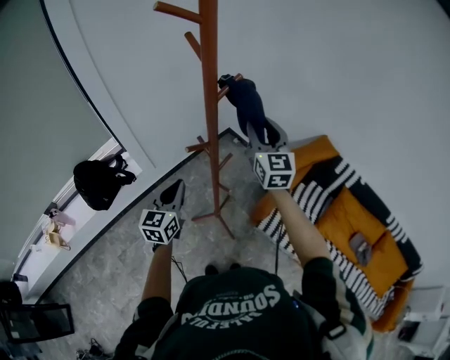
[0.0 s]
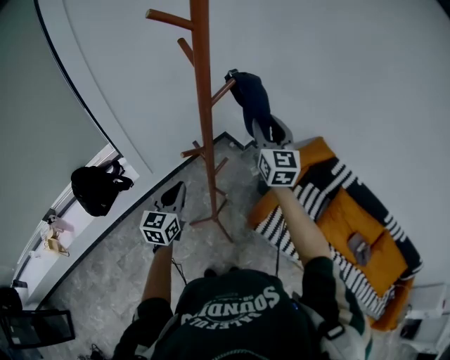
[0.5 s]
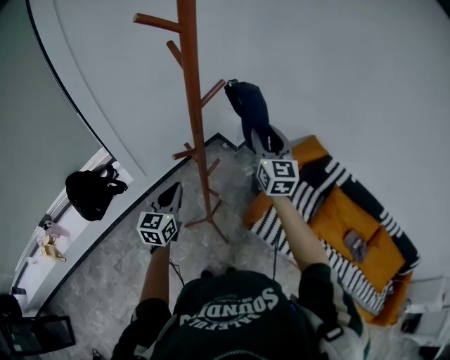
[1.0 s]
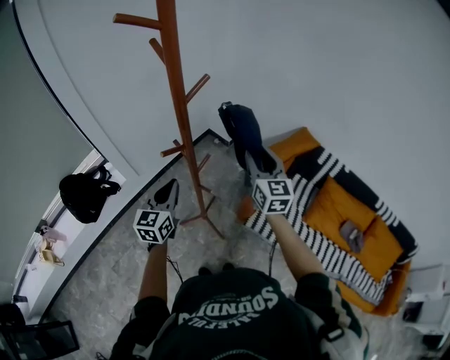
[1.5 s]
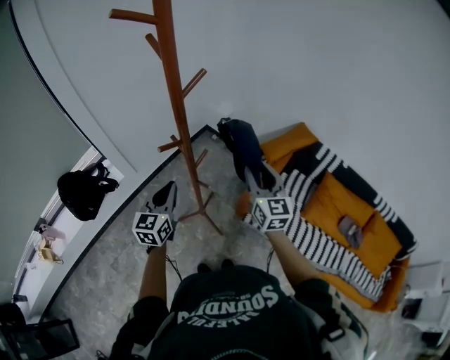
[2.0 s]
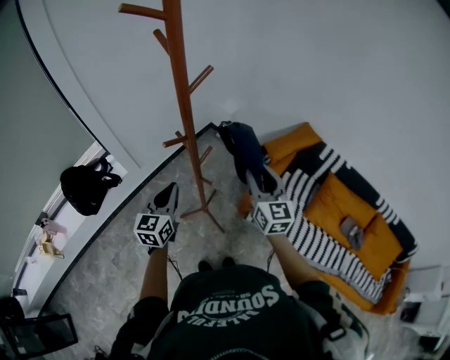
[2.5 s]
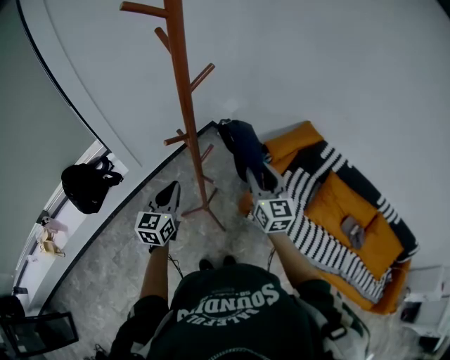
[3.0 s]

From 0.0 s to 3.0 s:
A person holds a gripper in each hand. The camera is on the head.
From 0.0 s to 1.5 s: The left gripper moves some 5 cm, while the right gripper travels to the right, downward and backward by roughly 15 cm.
From 1.5 s to 3.0 s: The right gripper heads backward, covering approximately 5 cm.

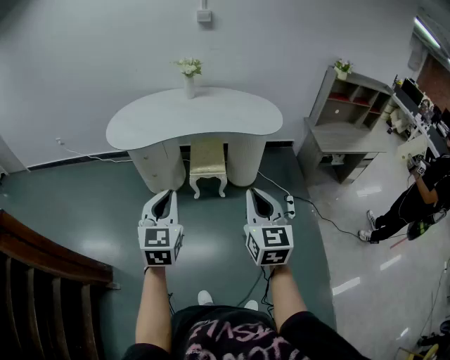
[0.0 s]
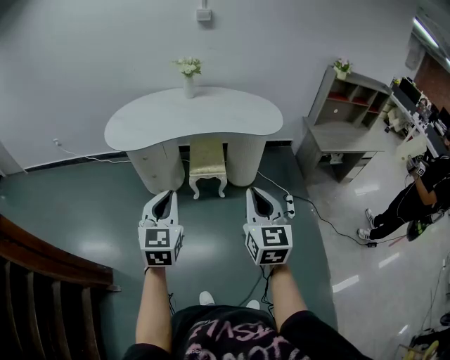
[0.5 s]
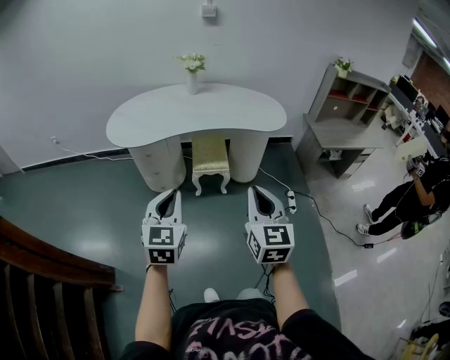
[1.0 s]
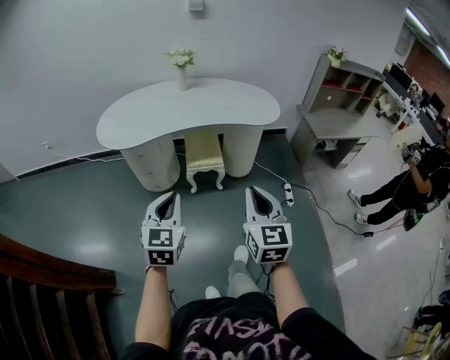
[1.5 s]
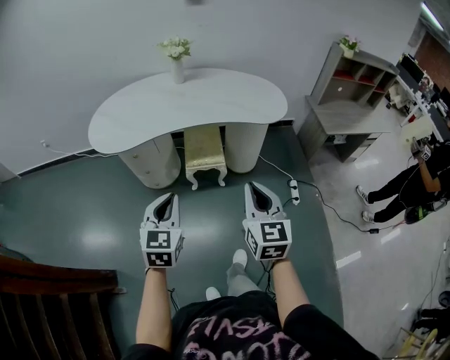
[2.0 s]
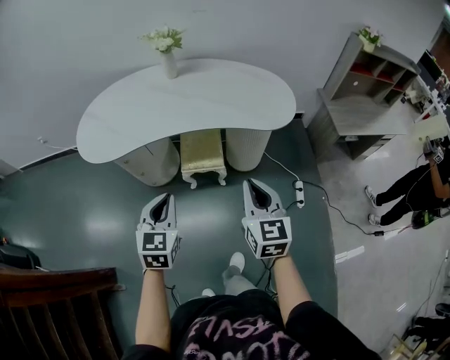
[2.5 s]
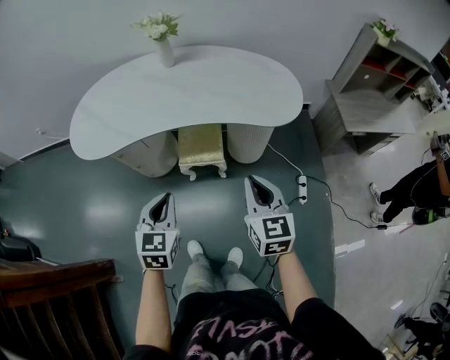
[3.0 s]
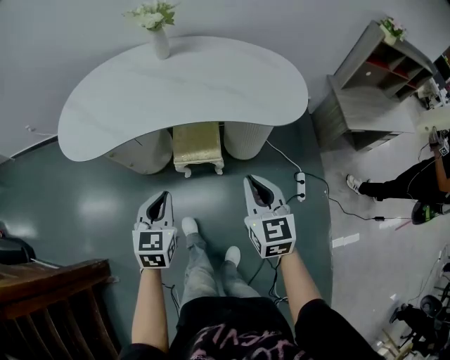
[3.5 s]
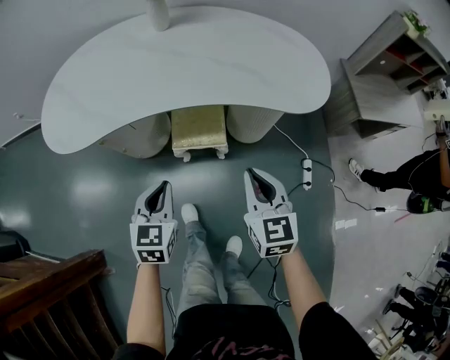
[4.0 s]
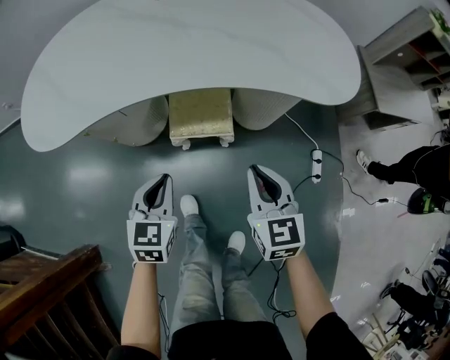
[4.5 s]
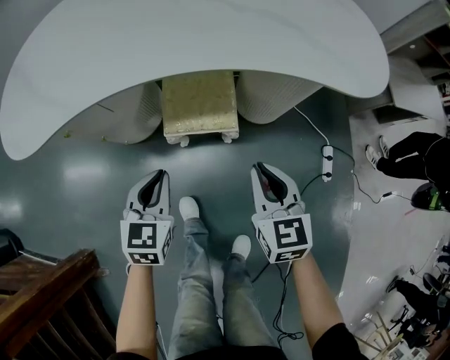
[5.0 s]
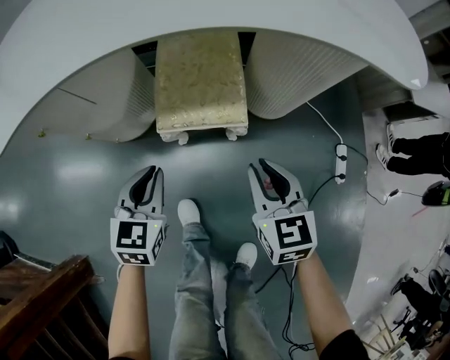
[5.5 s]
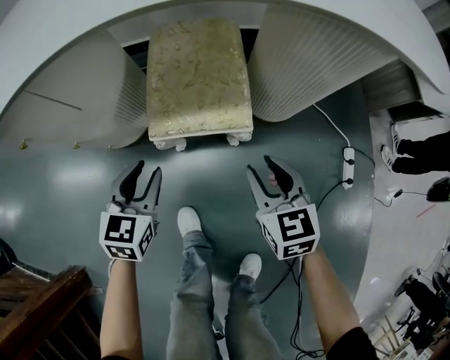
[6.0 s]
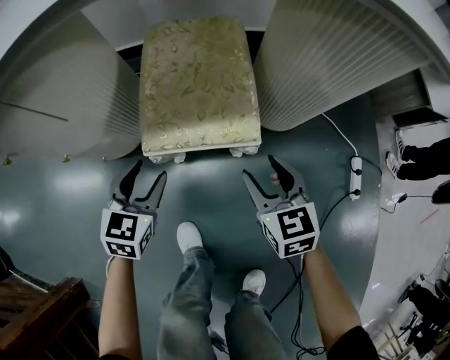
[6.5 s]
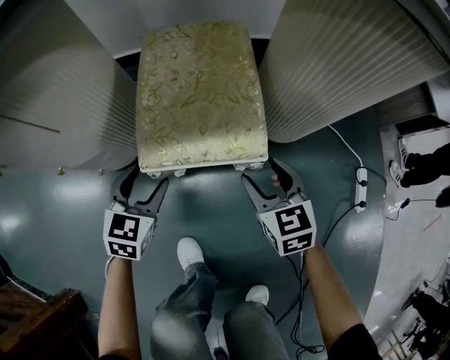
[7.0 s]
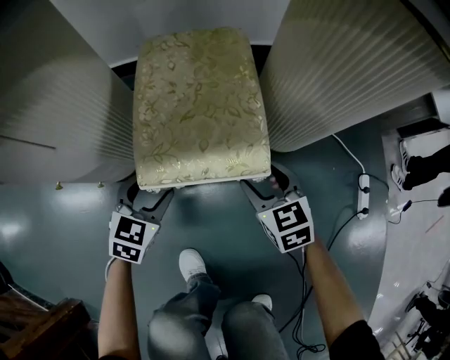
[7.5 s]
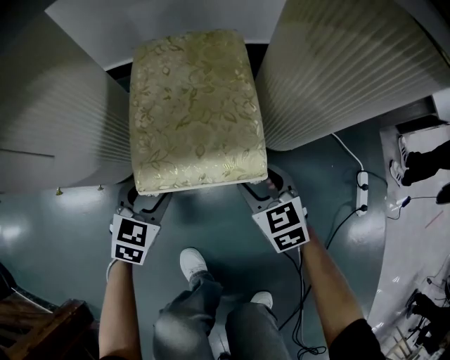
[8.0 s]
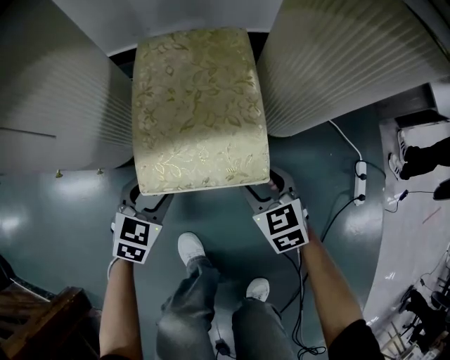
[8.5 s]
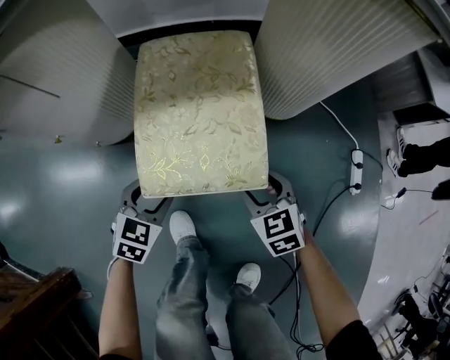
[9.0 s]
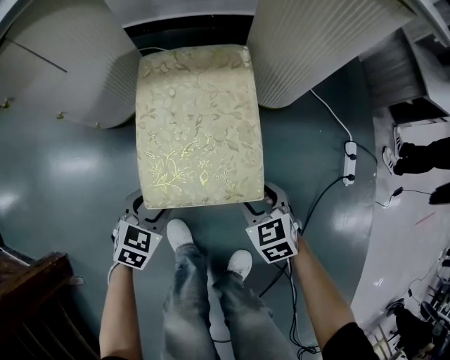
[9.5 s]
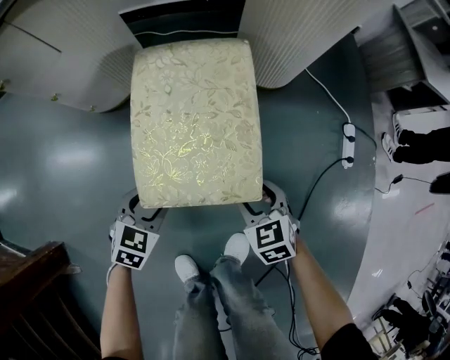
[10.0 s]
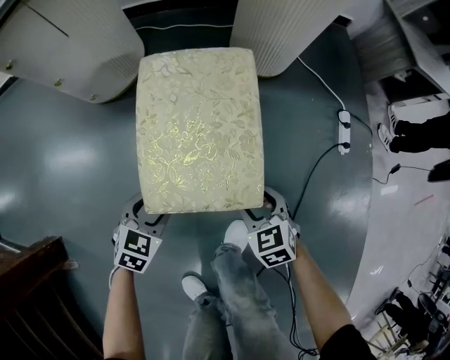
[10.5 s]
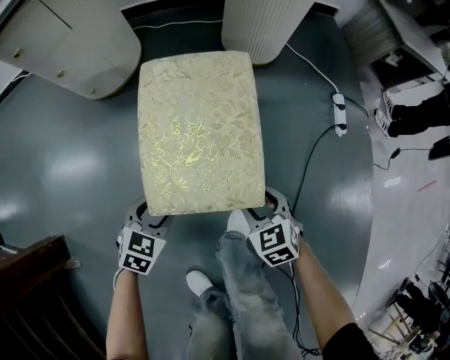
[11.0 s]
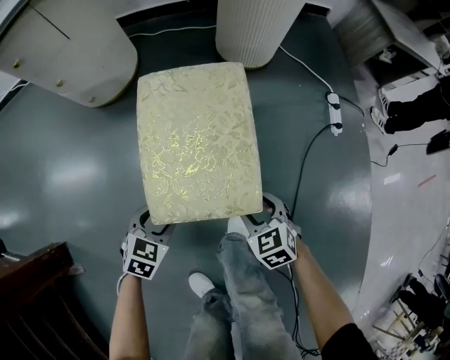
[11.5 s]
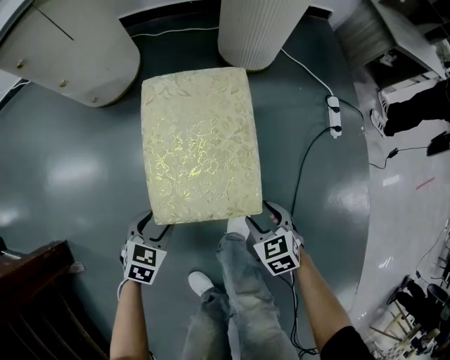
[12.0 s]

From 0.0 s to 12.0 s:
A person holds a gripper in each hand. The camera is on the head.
From 0.0 s to 2.0 s: Both grippers travel together forward and downward, roughly 15 cm.
From 2.0 s to 4.0 s: Both grippers travel together forward and downward, some 30 cm.
From 4.0 s to 6.0 s: Both grippers move downward, some 35 cm. The right gripper opens; the left gripper opens its fingers.
From 6.0 s to 8.0 s: Both grippers move downward and forward, approximately 15 cm. The left gripper opens its fingers.
From 8.0 s to 12.0 s: The grippers move only a little.

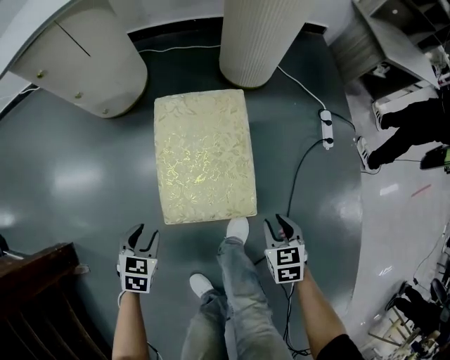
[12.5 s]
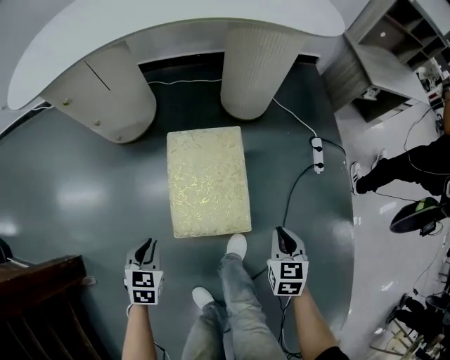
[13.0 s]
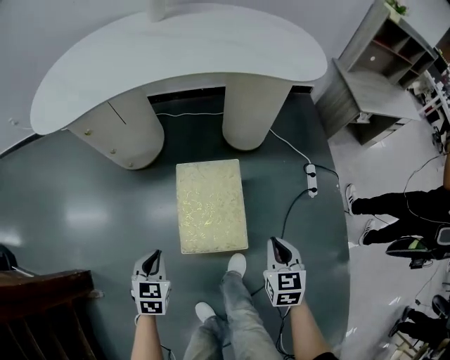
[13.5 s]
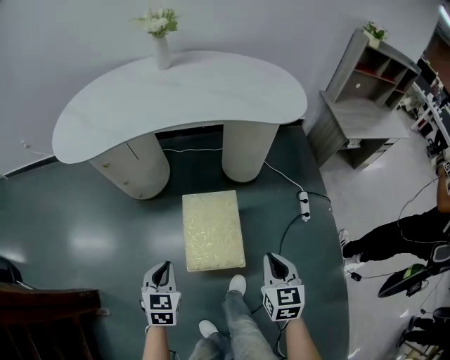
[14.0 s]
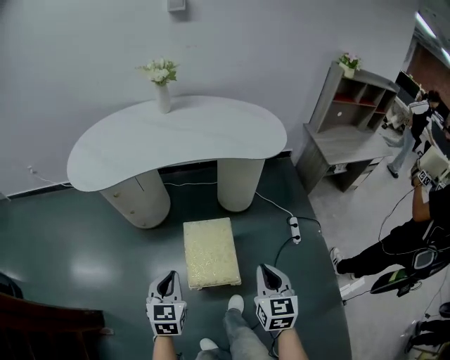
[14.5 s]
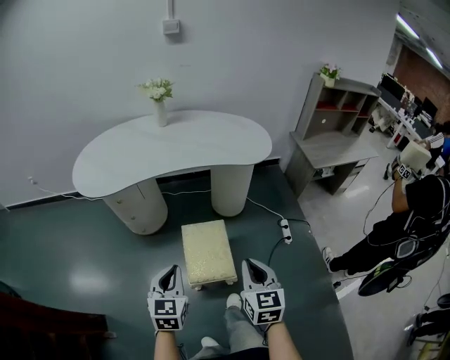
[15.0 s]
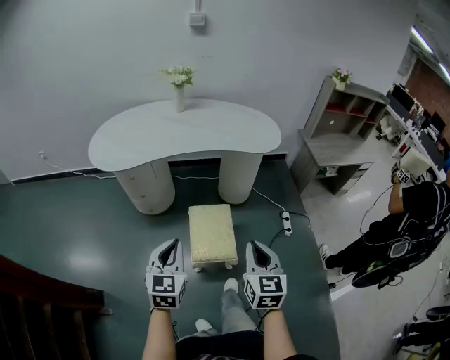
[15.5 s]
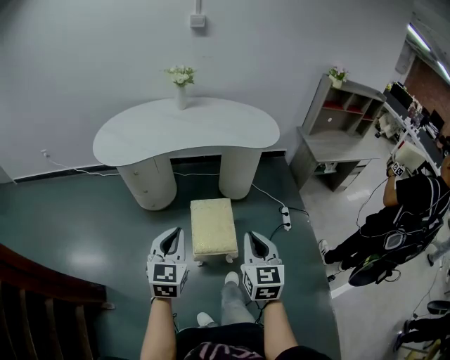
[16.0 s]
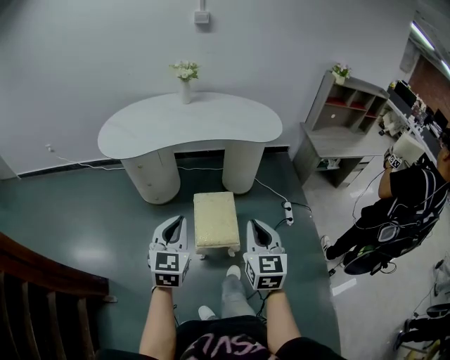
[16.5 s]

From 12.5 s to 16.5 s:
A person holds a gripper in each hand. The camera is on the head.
From 12.5 s to 14.5 s: The grippers both shift upward by approximately 40 cm. The left gripper points its fingers some 30 degrees further upward, and closes up. Meanwhile the right gripper angles its fingers upward, by some 30 degrees, and closes up.
From 14.5 s to 16.5 s: Both grippers travel together upward and backward, approximately 20 cm.

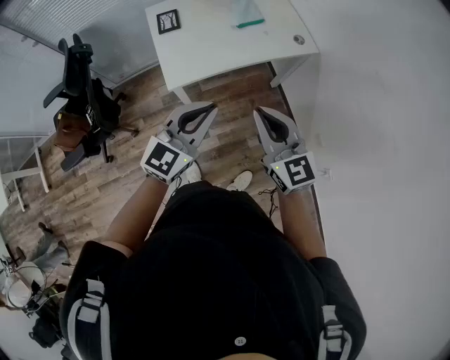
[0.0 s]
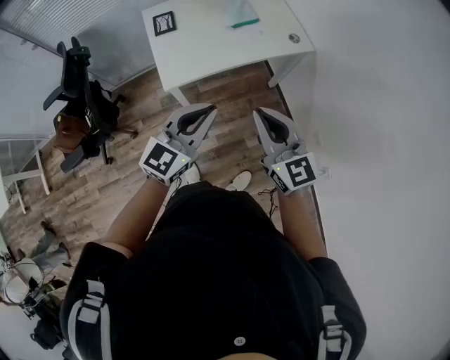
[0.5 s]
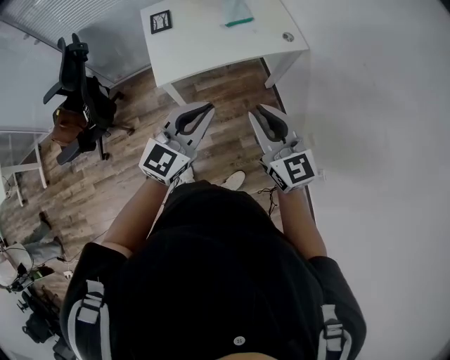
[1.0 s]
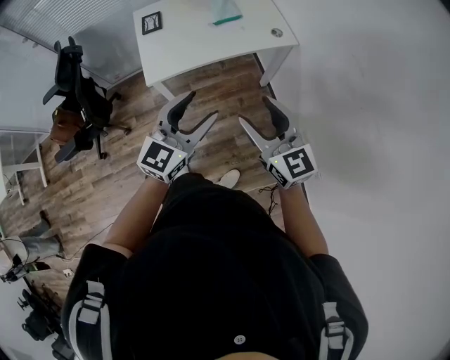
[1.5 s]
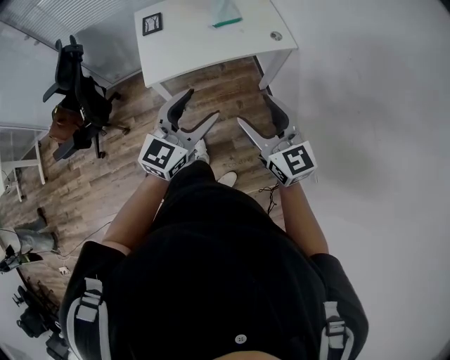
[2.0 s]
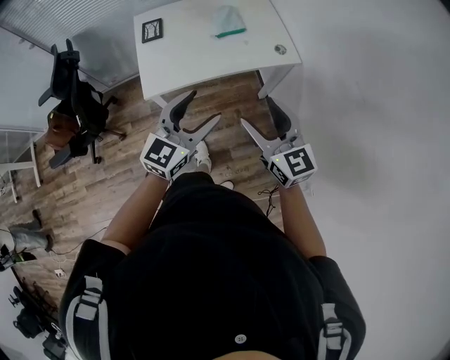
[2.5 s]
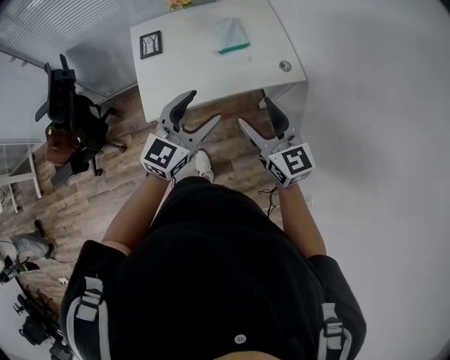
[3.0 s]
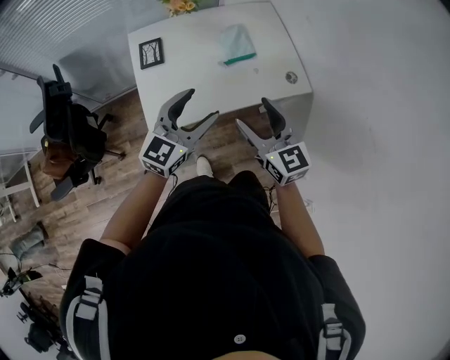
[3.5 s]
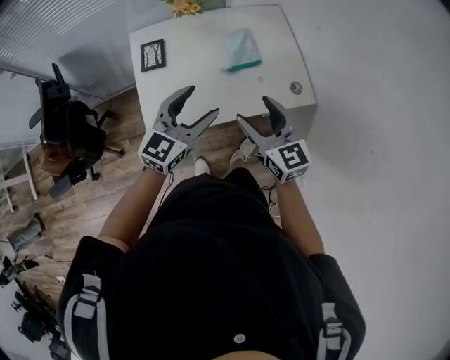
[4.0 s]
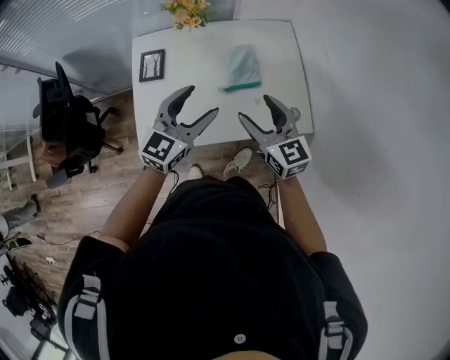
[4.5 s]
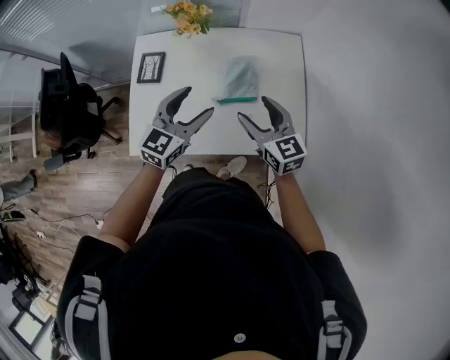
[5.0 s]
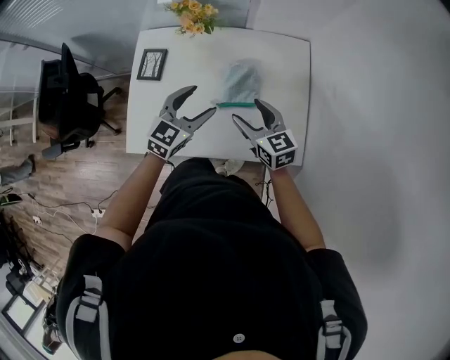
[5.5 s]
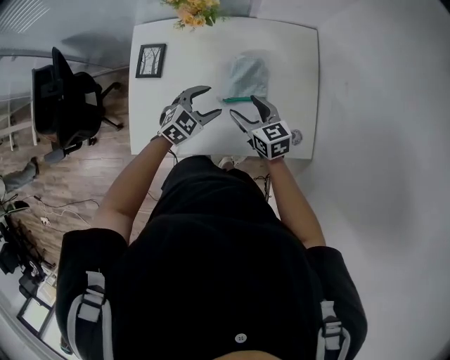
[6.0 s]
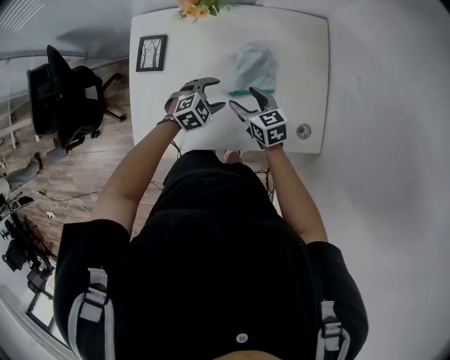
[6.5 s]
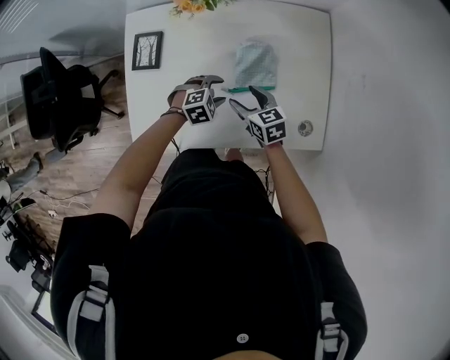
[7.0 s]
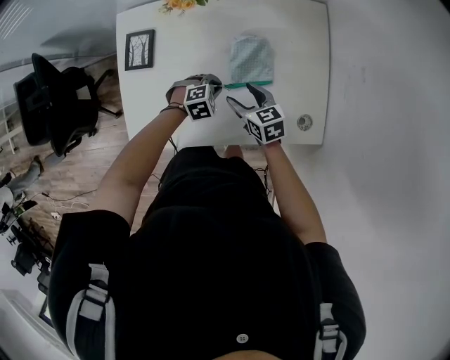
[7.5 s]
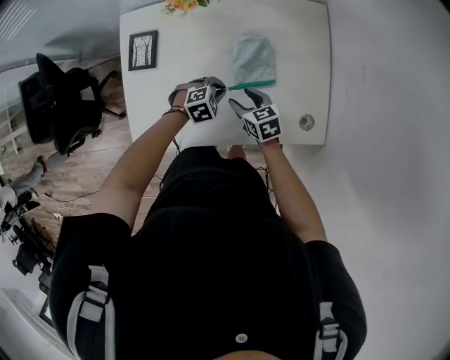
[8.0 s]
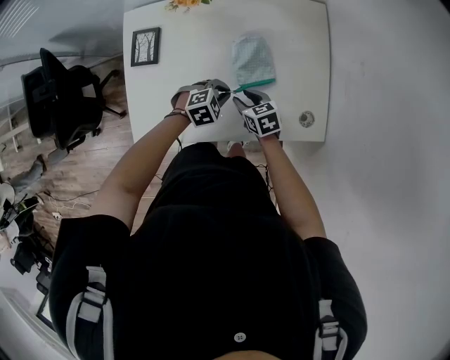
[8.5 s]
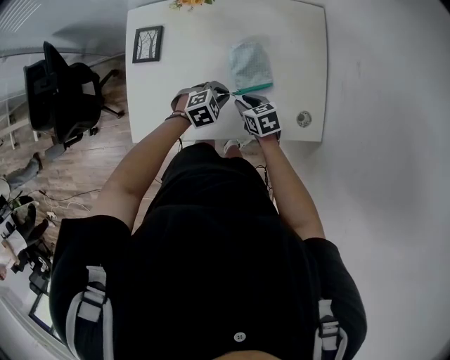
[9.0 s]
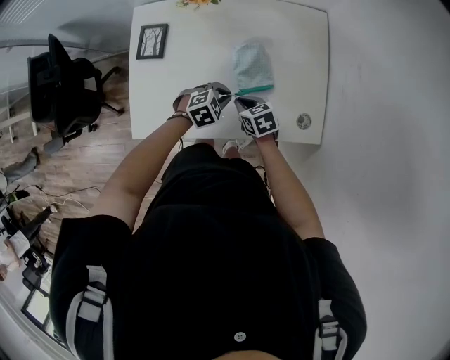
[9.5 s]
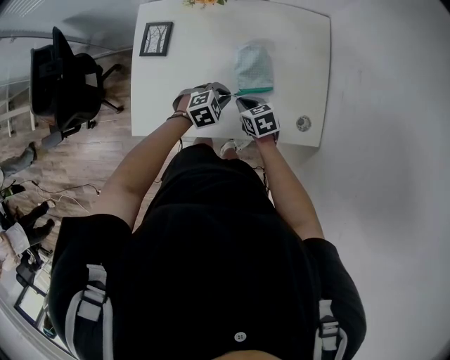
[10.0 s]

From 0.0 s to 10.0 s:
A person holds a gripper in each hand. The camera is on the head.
From 0.0 s to 2.0 s: The grippers both shift to the right by about 15 cm. The right gripper opens up. The left gripper opens up.
From 2.0 s to 4.0 s: The grippers both shift forward by roughly 35 cm.
From 4.0 s to 6.0 s: The left gripper travels downward, forward and to the right by about 30 cm, and tilts its fingers some 30 degrees downward, while the right gripper travels forward and downward by about 30 cm, and swivels approximately 30 degrees.
From 6.0 s to 8.0 s: Both grippers travel together downward, approximately 10 cm. The left gripper rotates roughly 30 degrees, and closes its fingers.
From 8.0 s to 10.0 s: The right gripper closes. Meanwhile the left gripper ends up roughly 5 cm from where it was.
